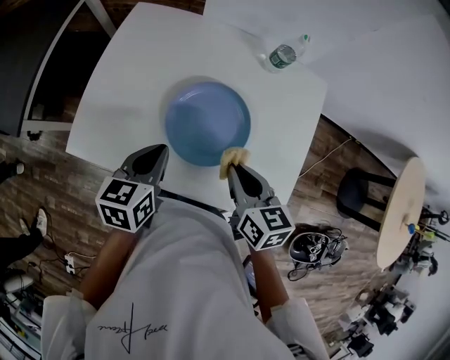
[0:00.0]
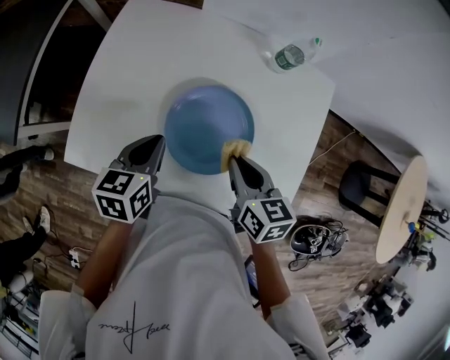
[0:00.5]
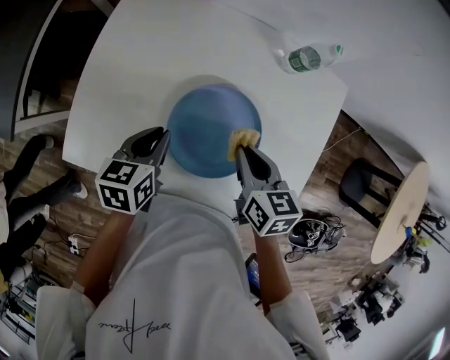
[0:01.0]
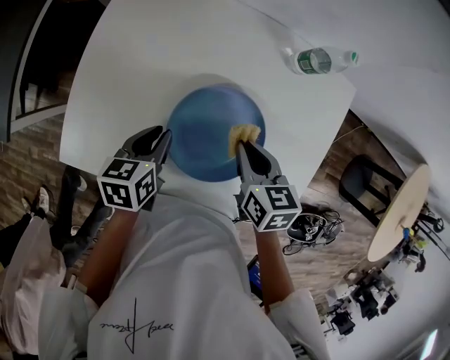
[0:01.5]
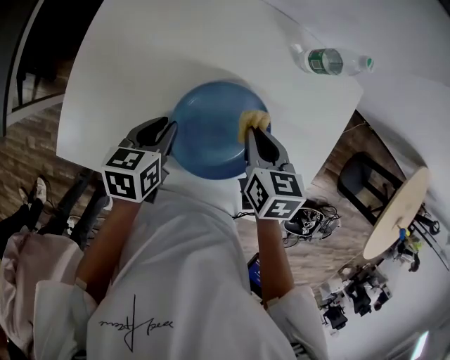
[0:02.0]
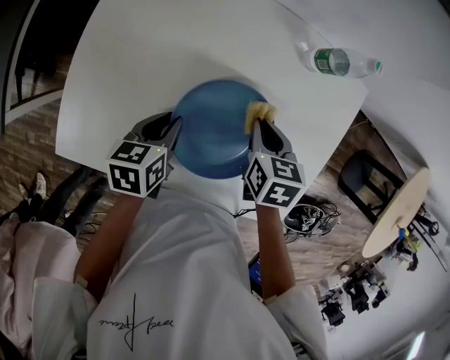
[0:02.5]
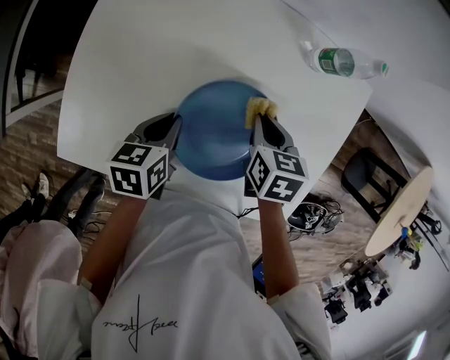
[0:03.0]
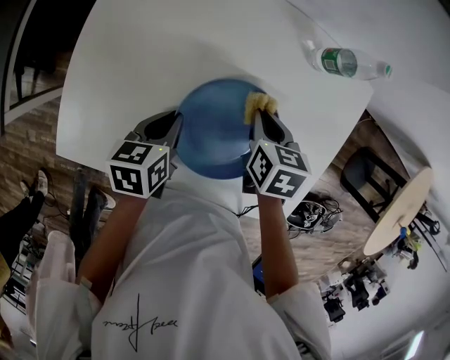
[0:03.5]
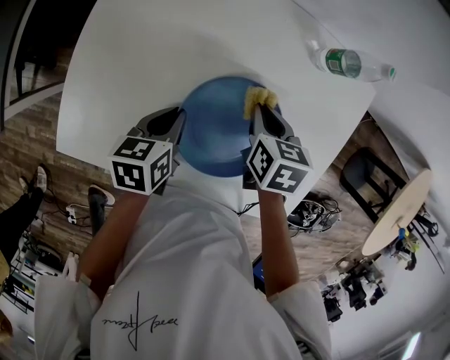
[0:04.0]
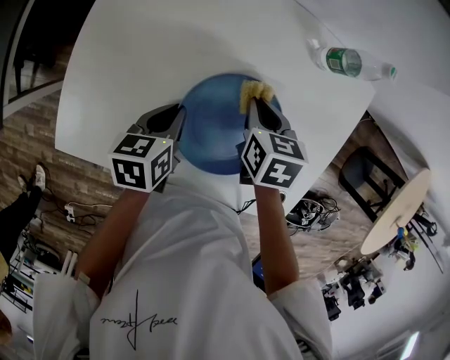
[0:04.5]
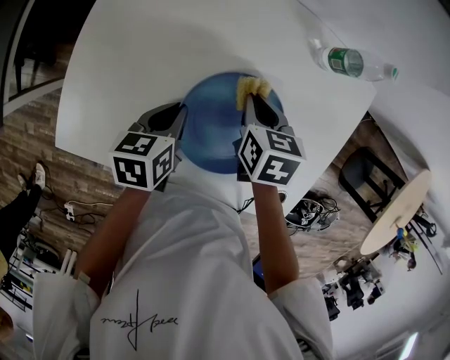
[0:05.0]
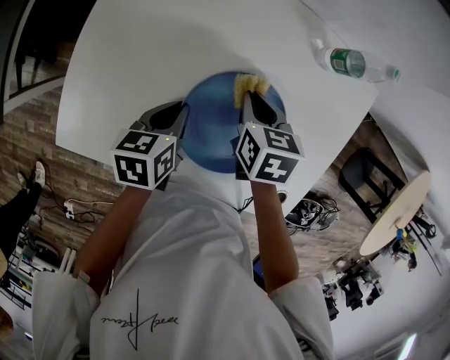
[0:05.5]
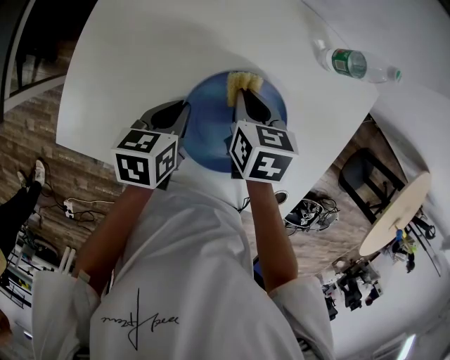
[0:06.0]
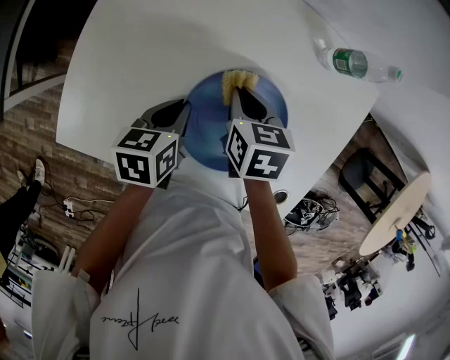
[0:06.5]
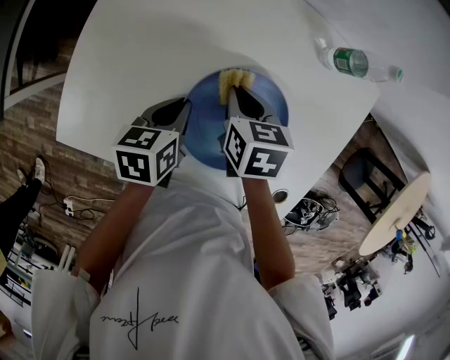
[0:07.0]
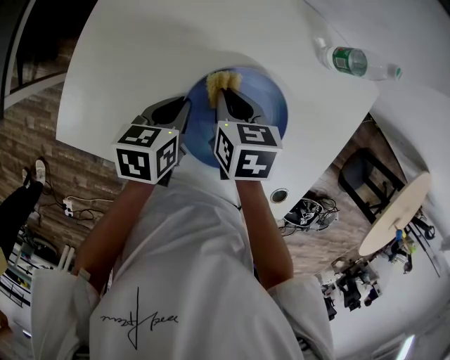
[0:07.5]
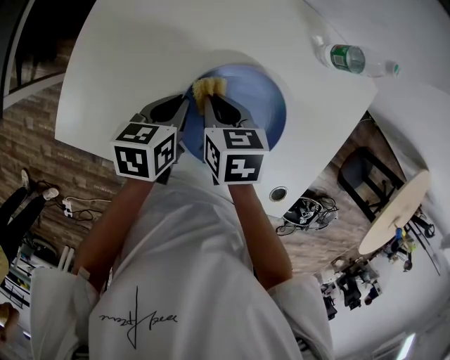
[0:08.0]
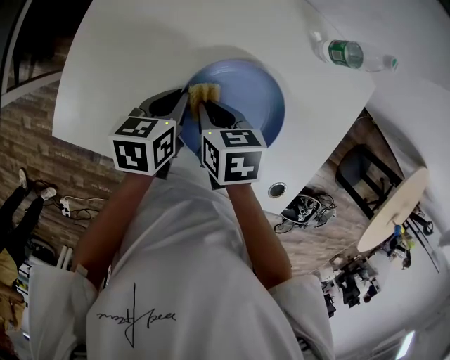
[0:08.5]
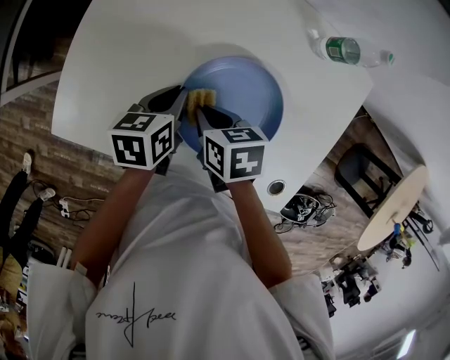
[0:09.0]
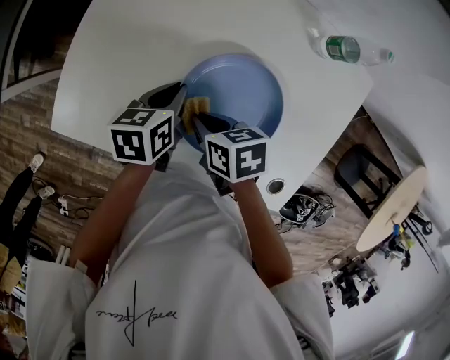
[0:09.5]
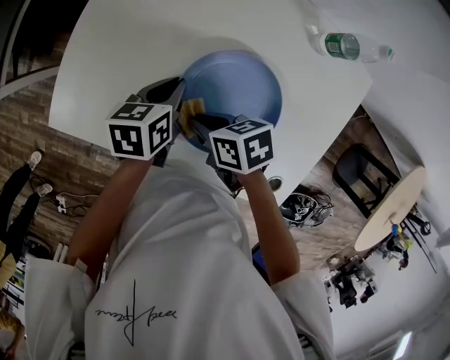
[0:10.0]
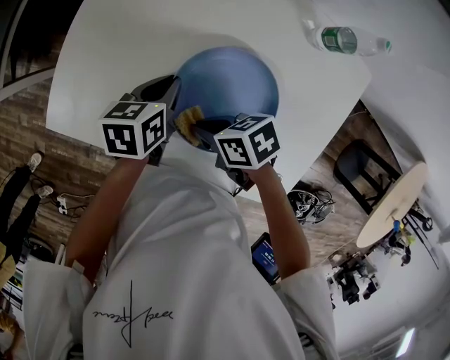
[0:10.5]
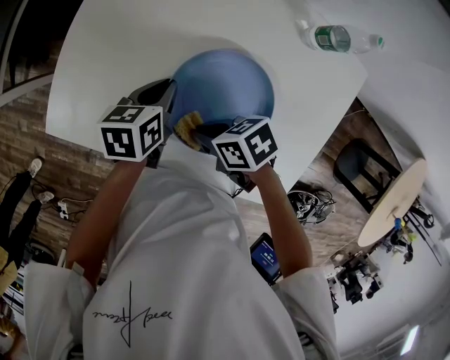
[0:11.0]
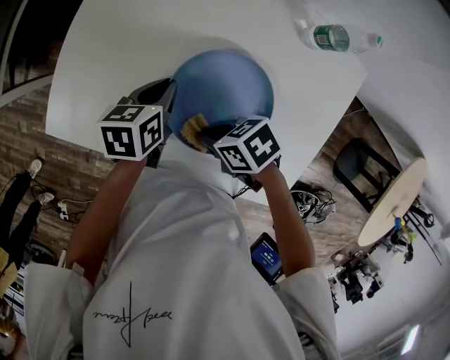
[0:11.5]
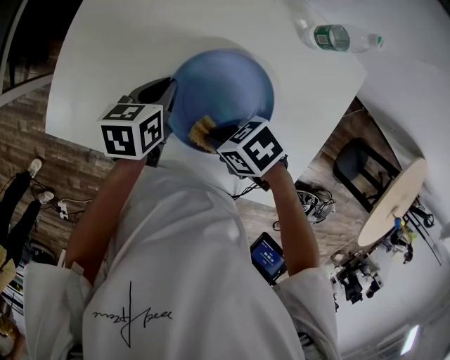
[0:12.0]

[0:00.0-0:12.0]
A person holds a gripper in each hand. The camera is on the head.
0:00.0 to 0:02.0: The left gripper is displaced downward and forward by roughly 15 cm, while the right gripper heads forward and downward, covering approximately 15 cm.
0:02.0 to 0:04.0: The right gripper ends up about 5 cm from where it was.
0:04.0 to 0:06.0: The right gripper moves to the left, some 5 cm.
0:06.0 to 0:08.0: The right gripper is displaced to the left by approximately 5 cm.
0:08.0 to 0:10.0: The right gripper is displaced backward by some 10 cm, and turns by some 30 degrees.
0:10.0 to 0:12.0: The right gripper shifts by about 5 cm, and changes its angle by about 30 degrees.

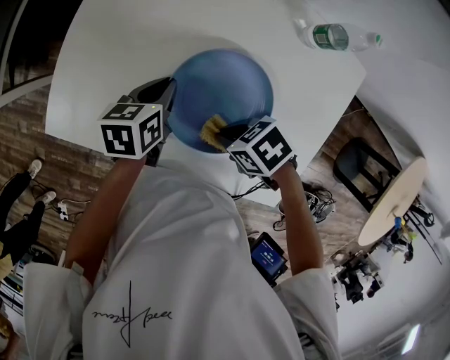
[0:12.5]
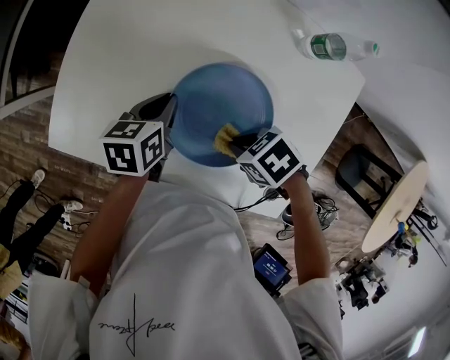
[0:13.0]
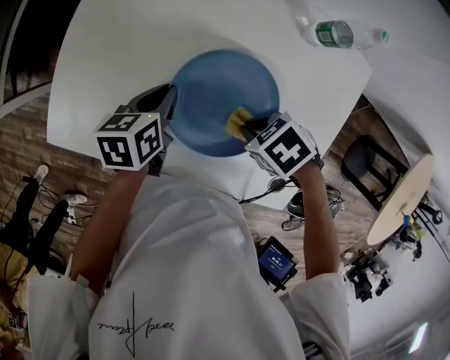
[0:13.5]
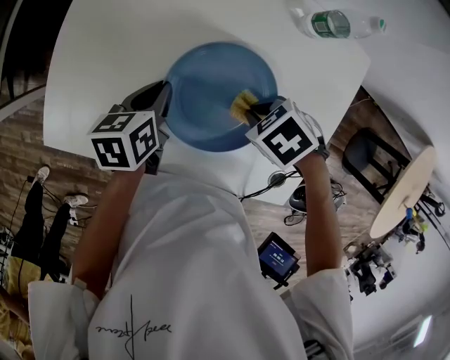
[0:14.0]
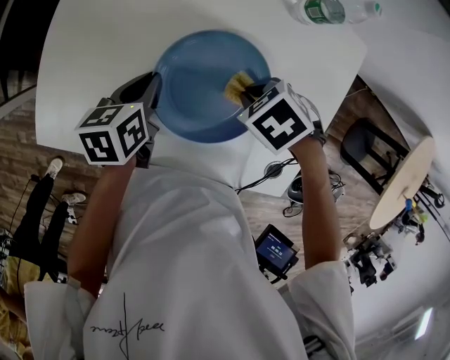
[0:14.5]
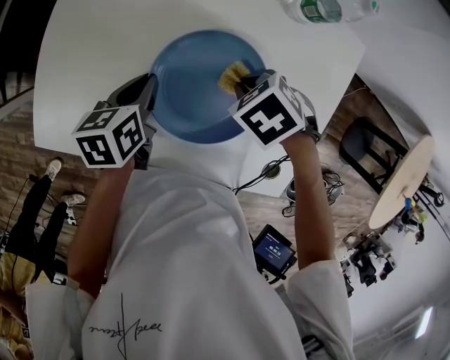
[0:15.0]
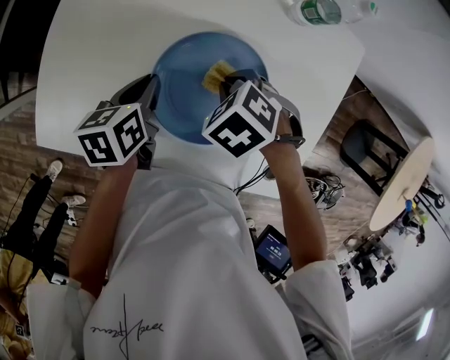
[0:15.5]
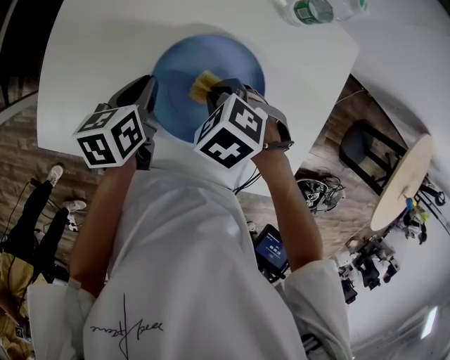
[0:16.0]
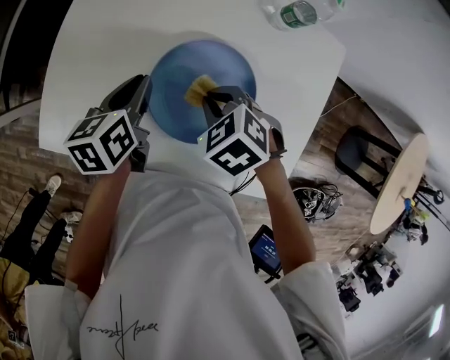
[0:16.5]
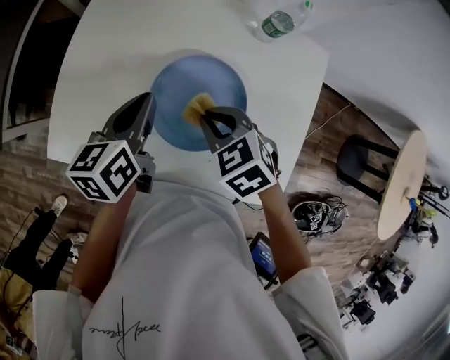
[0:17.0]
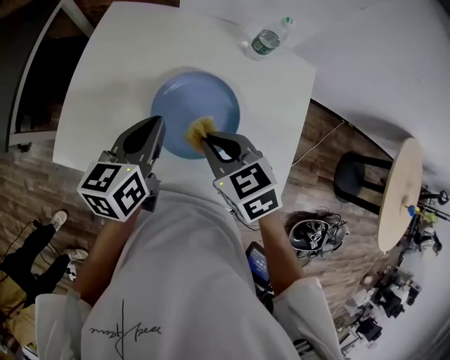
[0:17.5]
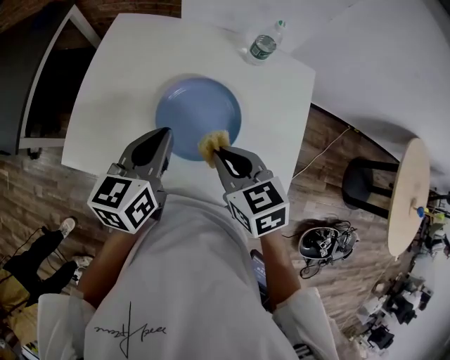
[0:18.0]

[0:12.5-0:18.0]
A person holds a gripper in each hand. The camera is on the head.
0:12.5 to 0:14.5: The right gripper shifts by some 10 cm, and turns by roughly 20 degrees.
0:14.5 to 0:16.0: The right gripper changes place by about 5 cm.
0:16.0 to 0:18.0: The two grippers go some 15 cm upward. The right gripper tips its fingers upward by some 40 degrees. Meanwhile the left gripper turns by approximately 30 degrees.

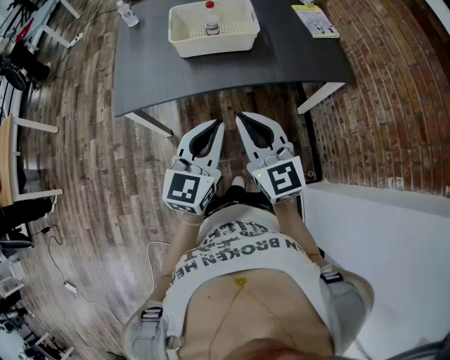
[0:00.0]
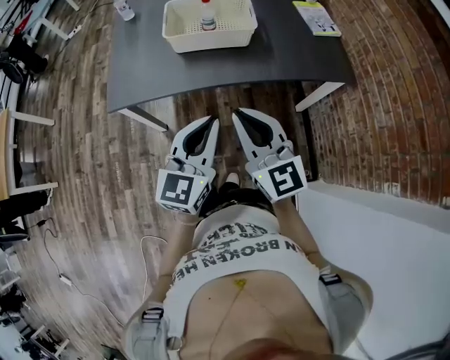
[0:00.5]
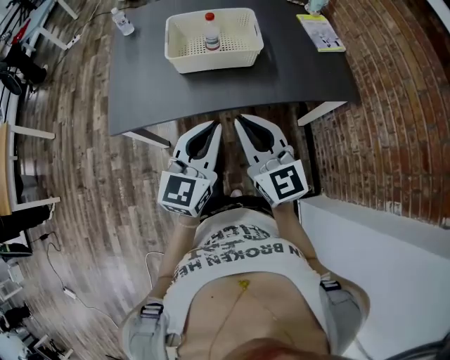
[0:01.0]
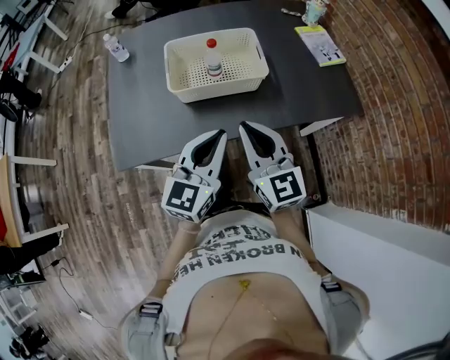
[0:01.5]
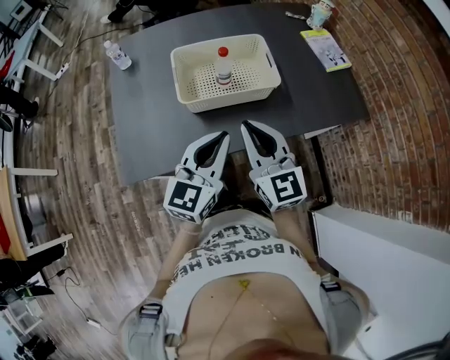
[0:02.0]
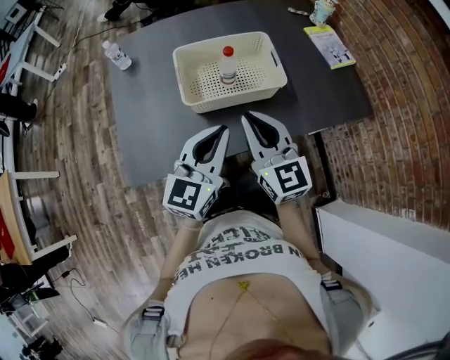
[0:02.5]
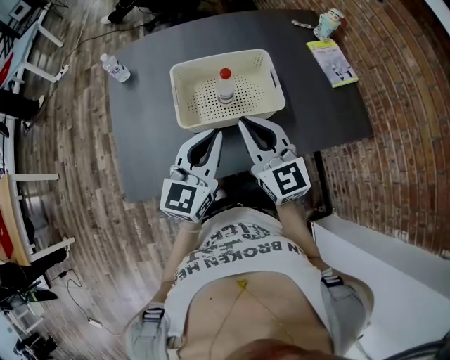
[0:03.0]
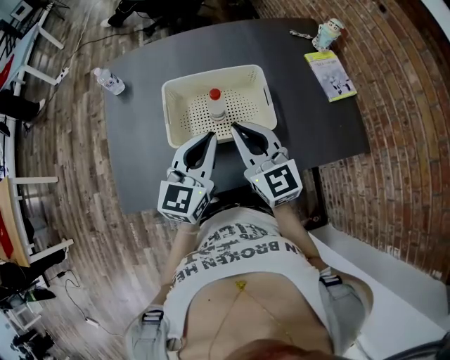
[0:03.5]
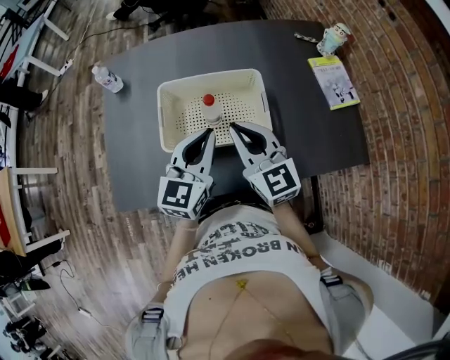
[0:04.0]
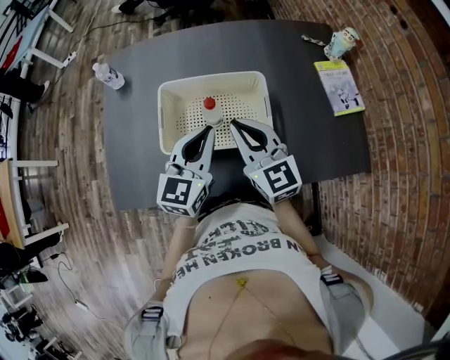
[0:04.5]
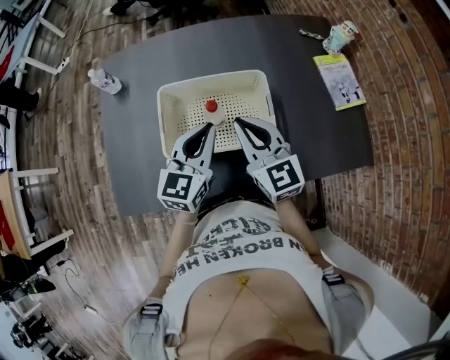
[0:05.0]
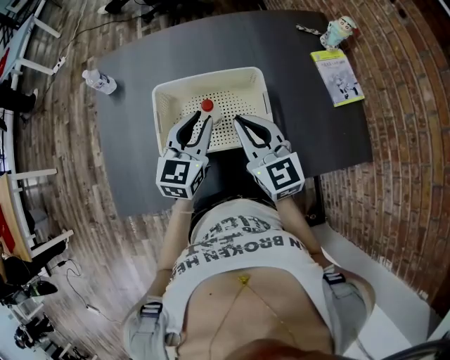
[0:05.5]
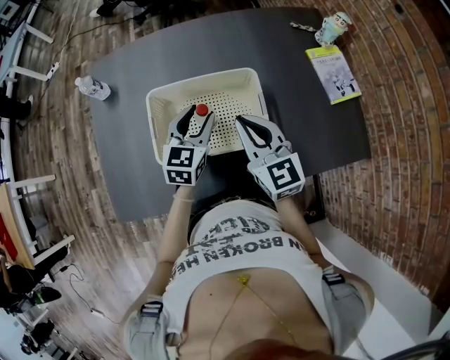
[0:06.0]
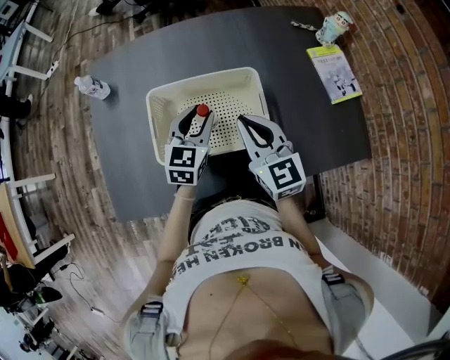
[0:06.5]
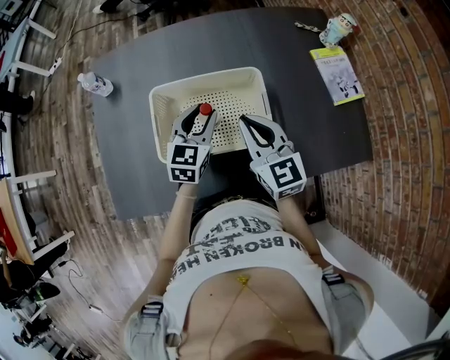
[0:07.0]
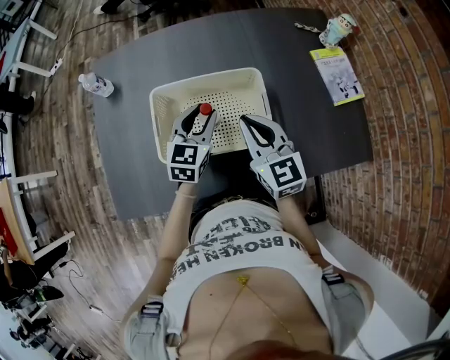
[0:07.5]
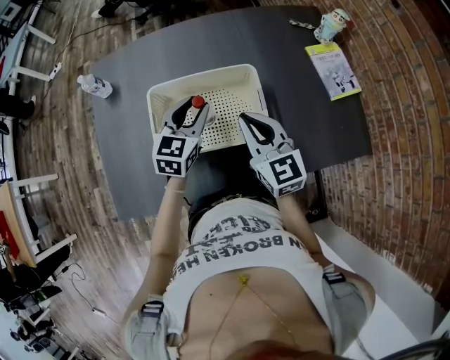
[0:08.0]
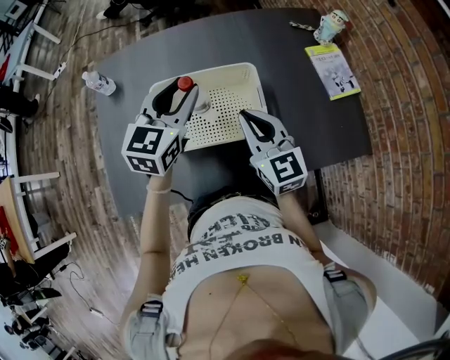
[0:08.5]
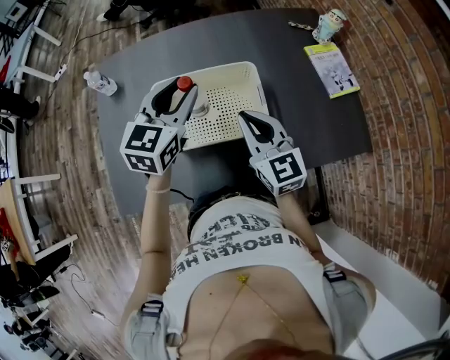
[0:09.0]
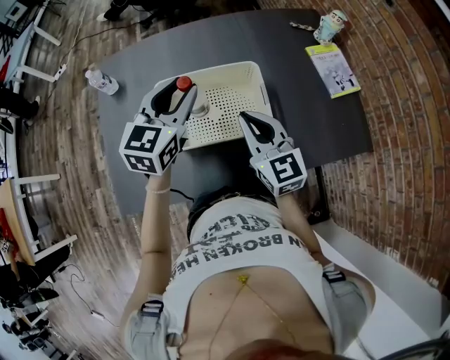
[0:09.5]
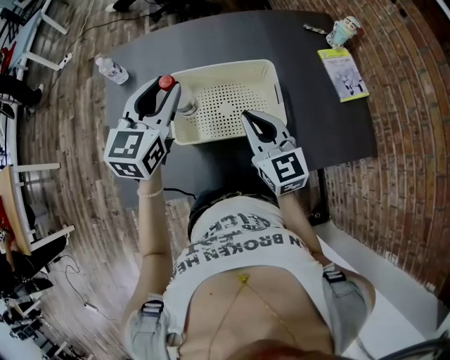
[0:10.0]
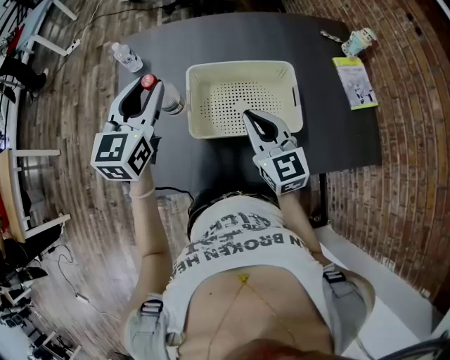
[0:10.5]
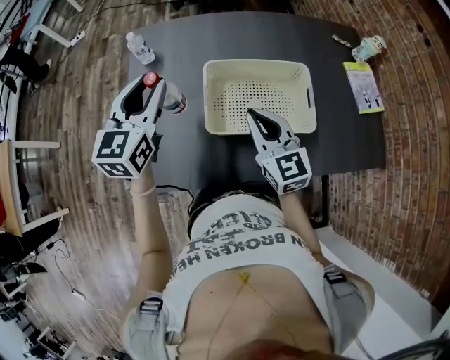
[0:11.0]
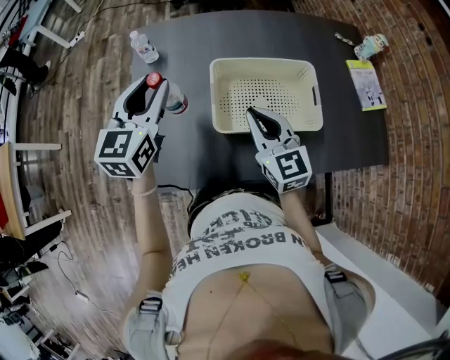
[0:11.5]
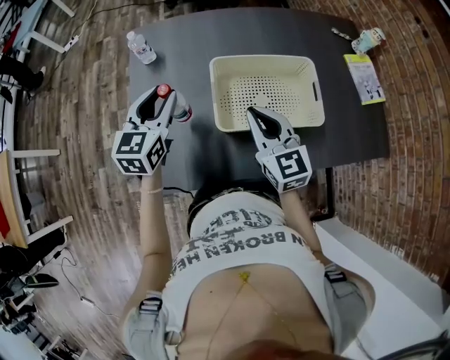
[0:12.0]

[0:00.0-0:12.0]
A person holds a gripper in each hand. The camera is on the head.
0:00.0 to 0:02.0: The two grippers go some 25 cm forward.
0:02.0 to 0:04.0: Both grippers travel together forward, roughly 20 cm.
0:04.0 to 0:06.0: The left gripper travels forward and downward by approximately 15 cm, and opens its fingers. The right gripper goes some 5 cm forward.
0:06.0 to 0:08.0: There are only small adjustments of the grippers.
0:08.0 to 0:10.0: The right gripper shifts some 5 cm to the left; the left gripper goes approximately 15 cm upward and to the left.
0:10.0 to 0:12.0: The right gripper travels to the left by about 15 cm, while the left gripper travels to the left and downward by approximately 20 cm.
